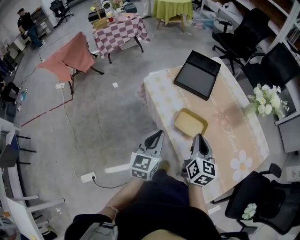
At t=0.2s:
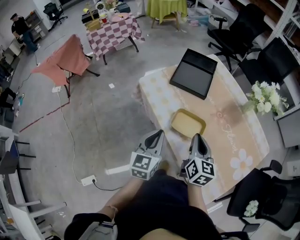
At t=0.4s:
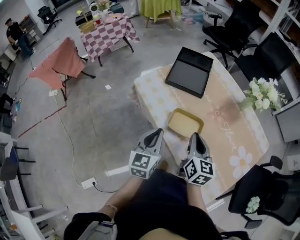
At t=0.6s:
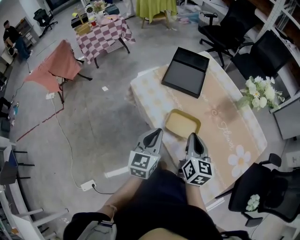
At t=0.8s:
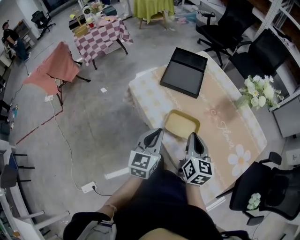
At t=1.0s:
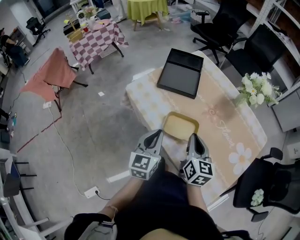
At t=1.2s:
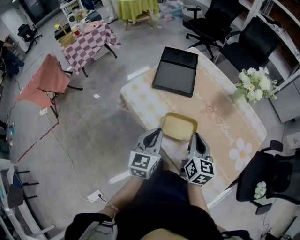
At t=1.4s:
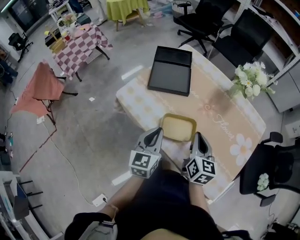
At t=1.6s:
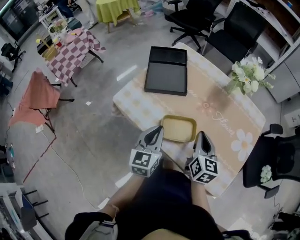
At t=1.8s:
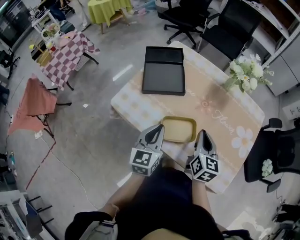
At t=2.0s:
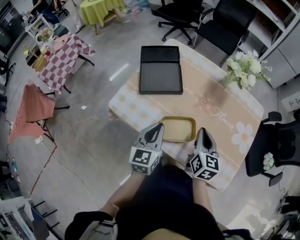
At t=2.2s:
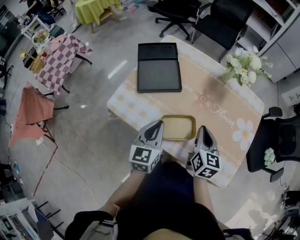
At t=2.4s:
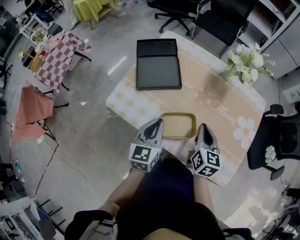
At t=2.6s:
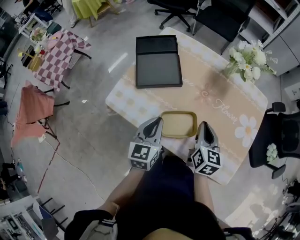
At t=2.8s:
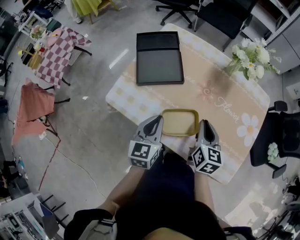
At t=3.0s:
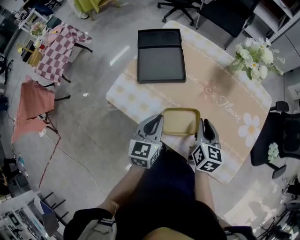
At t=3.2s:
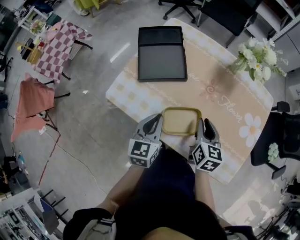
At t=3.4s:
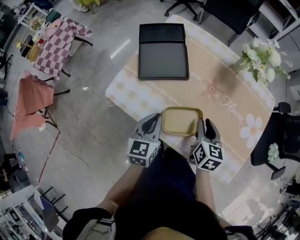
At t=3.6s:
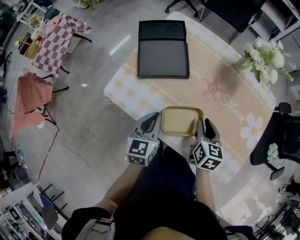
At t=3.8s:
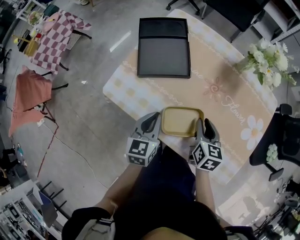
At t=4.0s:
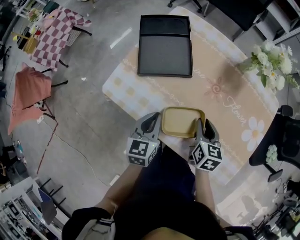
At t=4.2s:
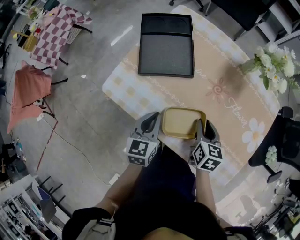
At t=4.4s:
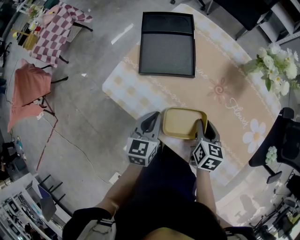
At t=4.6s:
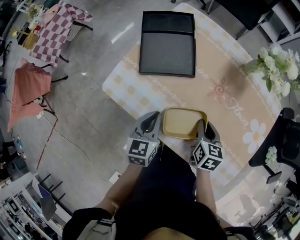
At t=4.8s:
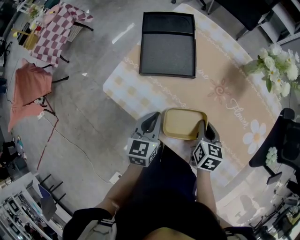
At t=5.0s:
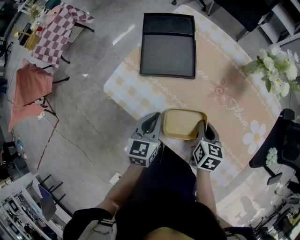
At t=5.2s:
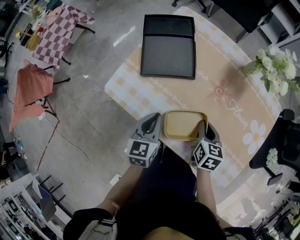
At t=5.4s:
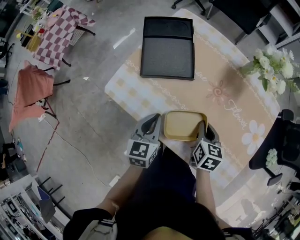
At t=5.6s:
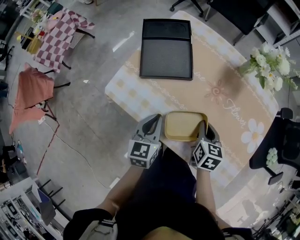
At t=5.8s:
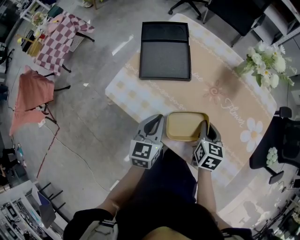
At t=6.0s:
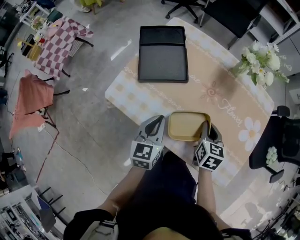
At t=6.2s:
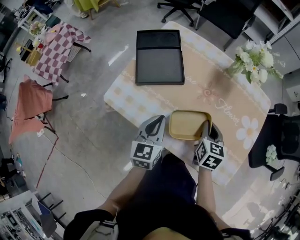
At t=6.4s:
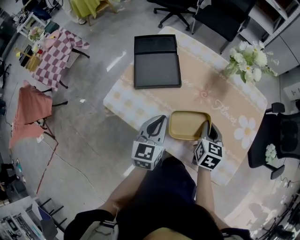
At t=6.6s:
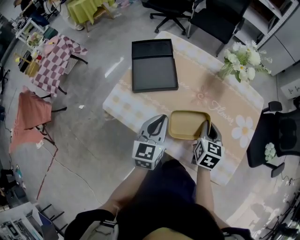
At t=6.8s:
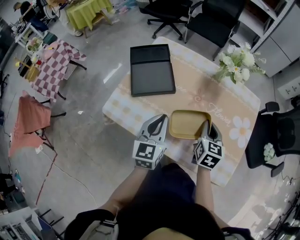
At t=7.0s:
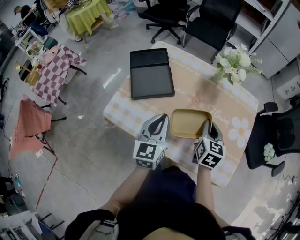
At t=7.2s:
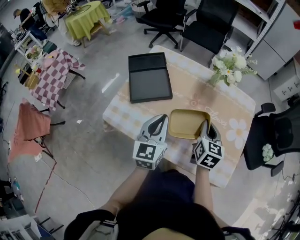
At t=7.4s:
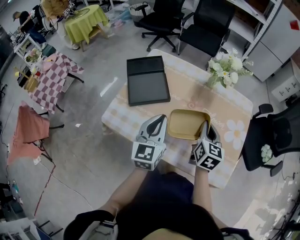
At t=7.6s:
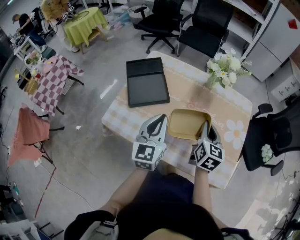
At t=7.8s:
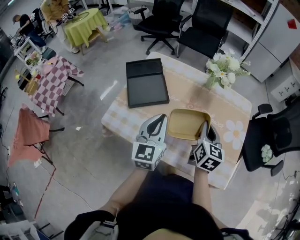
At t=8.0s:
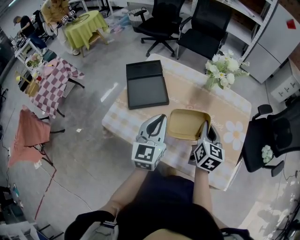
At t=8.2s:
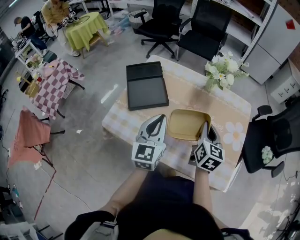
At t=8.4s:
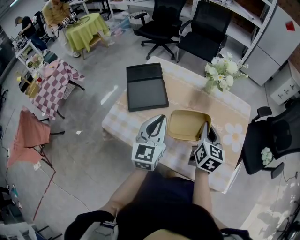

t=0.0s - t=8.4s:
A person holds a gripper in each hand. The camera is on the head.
t=0.0s - t=1.4s: The left gripper goes about 10 cm forward.
t=1.4s - t=2.8s: The left gripper heads forward, covering about 5 cm.
t=2.8s - t=4.2s: Both grippers travel together downward, roughly 5 cm.
t=4.2s - t=5.6s: The right gripper closes up.
t=5.6s - t=7.0s: The two grippers go roughly 10 cm upward and to the right. The right gripper changes its angle by roughly 20 degrees.
t=7.0s - t=8.4s: There are only small adjustments of the grippers.

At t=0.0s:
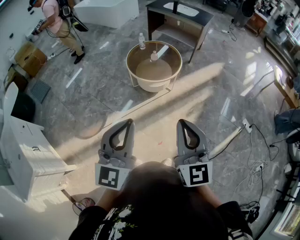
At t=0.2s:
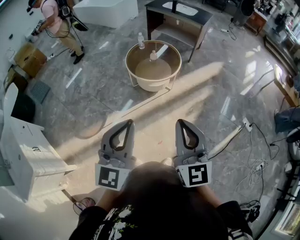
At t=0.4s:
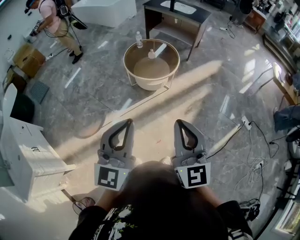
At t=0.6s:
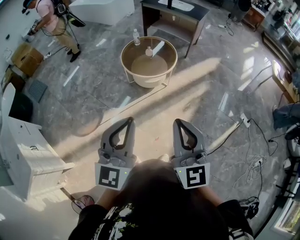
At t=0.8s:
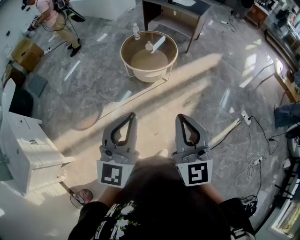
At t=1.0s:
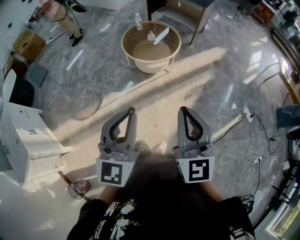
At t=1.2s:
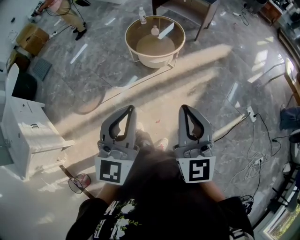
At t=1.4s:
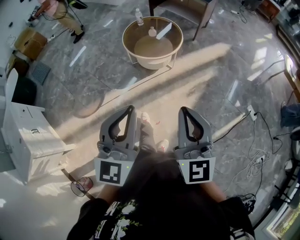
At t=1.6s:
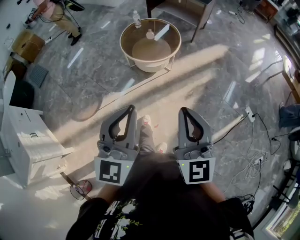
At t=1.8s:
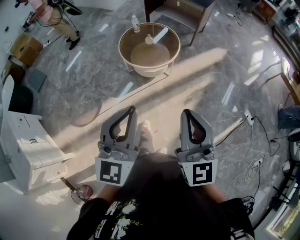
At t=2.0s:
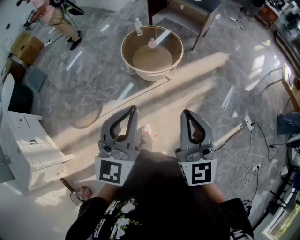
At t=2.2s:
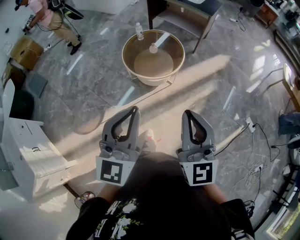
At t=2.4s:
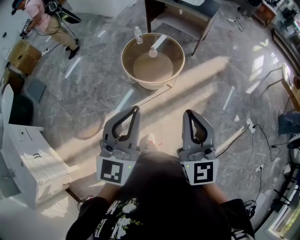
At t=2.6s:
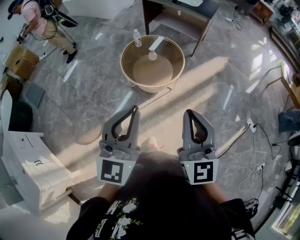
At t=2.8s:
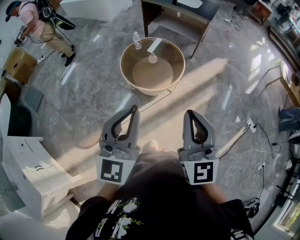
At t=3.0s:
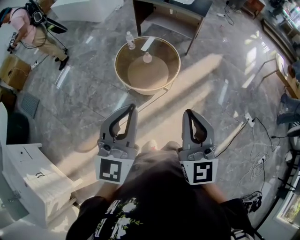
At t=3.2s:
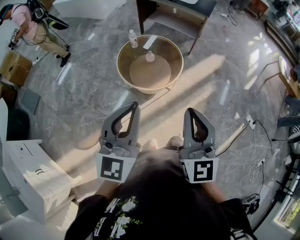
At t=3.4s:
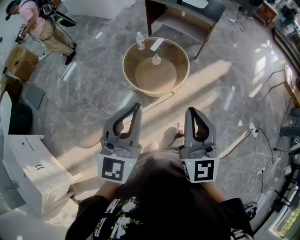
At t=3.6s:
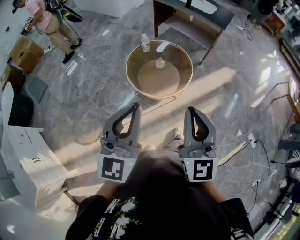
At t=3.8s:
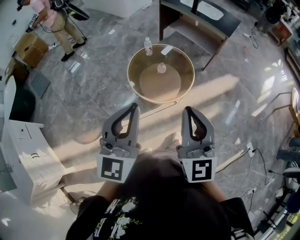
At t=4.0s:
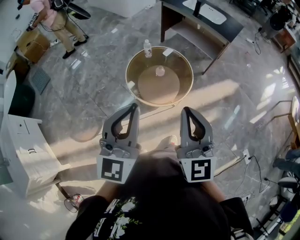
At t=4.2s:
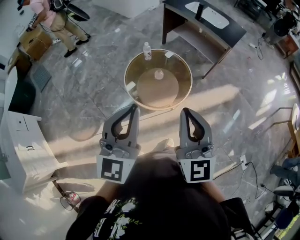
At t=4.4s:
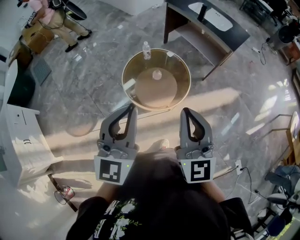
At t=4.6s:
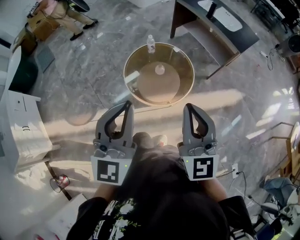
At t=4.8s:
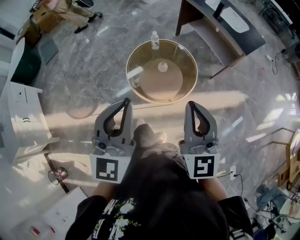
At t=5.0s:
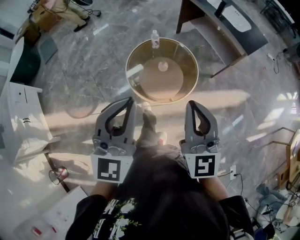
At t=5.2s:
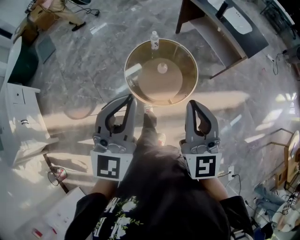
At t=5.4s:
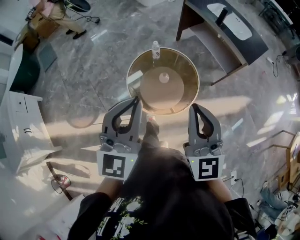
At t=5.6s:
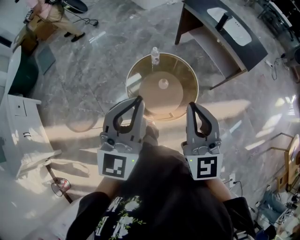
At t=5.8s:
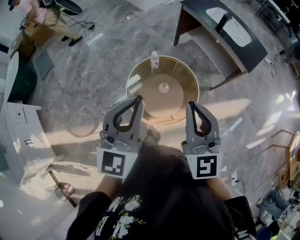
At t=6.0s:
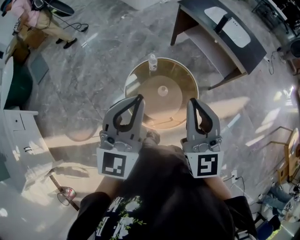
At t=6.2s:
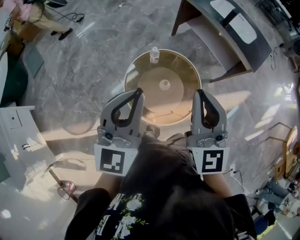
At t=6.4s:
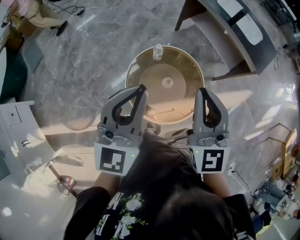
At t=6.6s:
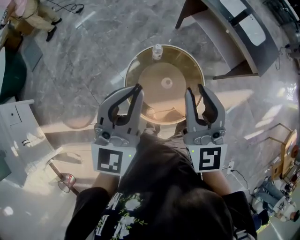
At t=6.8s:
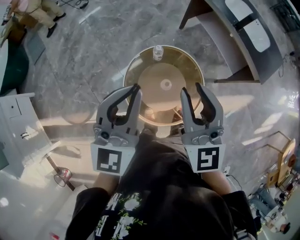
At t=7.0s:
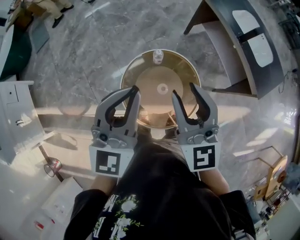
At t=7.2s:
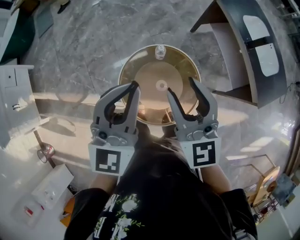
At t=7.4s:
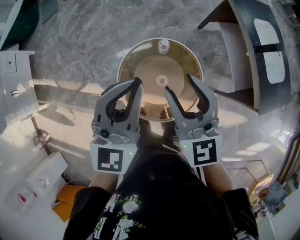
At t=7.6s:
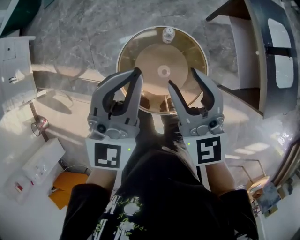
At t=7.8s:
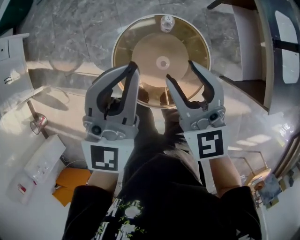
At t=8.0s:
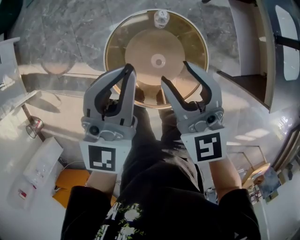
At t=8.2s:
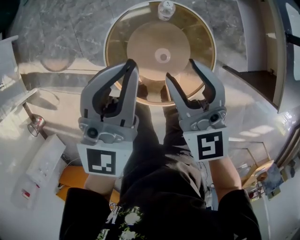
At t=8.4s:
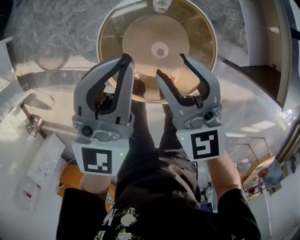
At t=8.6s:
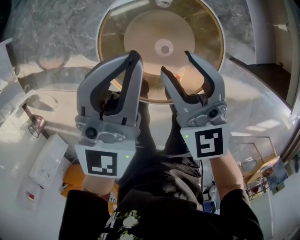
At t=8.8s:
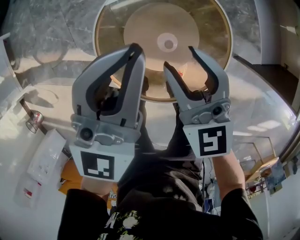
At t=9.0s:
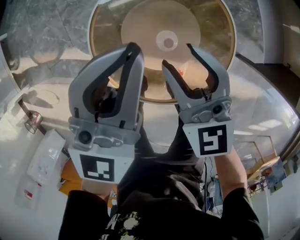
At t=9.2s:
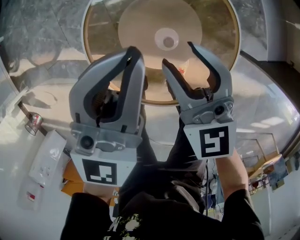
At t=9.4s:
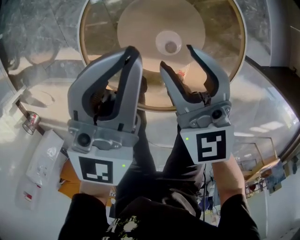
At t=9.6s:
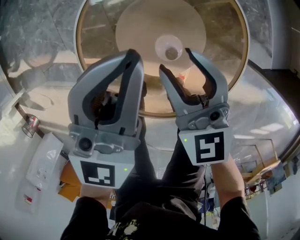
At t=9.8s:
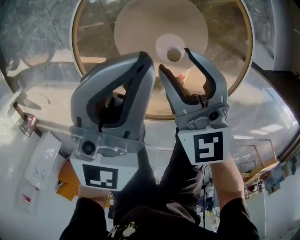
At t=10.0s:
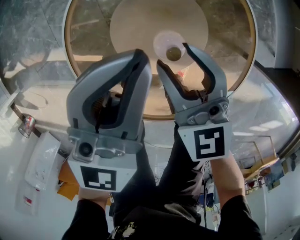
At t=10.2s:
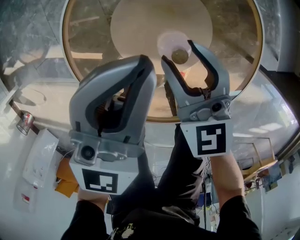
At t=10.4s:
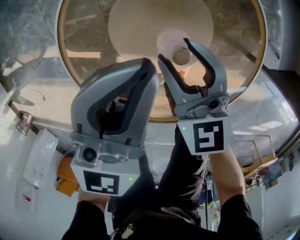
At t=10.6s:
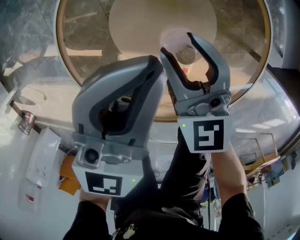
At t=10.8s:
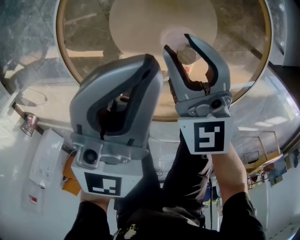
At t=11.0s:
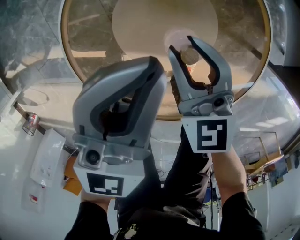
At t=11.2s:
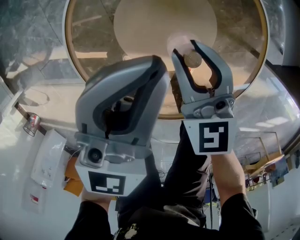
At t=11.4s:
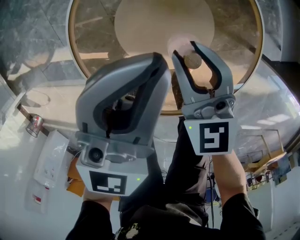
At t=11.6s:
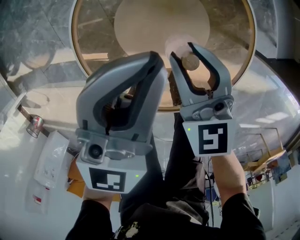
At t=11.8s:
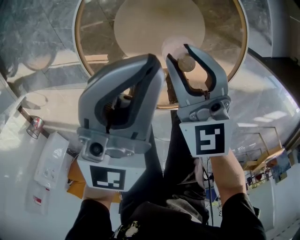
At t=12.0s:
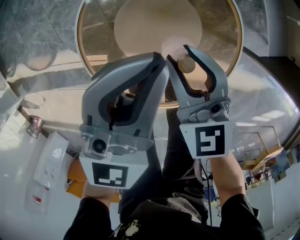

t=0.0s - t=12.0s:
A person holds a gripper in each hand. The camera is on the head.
t=0.0s - t=1.6s: Both grippers travel together to the right and forward, about 15 cm.
t=1.6s - t=3.0s: The two grippers go roughly 30 cm forward and to the left.
t=3.0s - t=4.4s: The grippers both shift forward and to the right by approximately 30 cm. The right gripper changes its angle by roughly 20 degrees, while the left gripper swivels roughly 20 degrees.
t=4.4s - t=6.0s: Both grippers move forward, some 30 cm.
t=6.0s - t=7.6s: The left gripper shifts by roughly 25 cm, and swivels approximately 30 degrees; the right gripper ends up approximately 30 cm from where it was, swivels roughly 40 degrees, and opens.
t=7.6s - t=9.0s: The grippers both shift downward by approximately 35 cm.
t=9.0s - t=10.4s: The grippers both shift downward by roughly 20 cm.
t=10.4s - t=12.0s: Both grippers move upward, approximately 15 cm.

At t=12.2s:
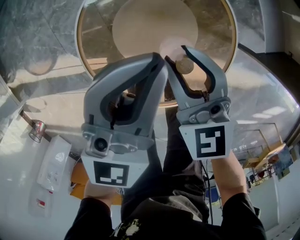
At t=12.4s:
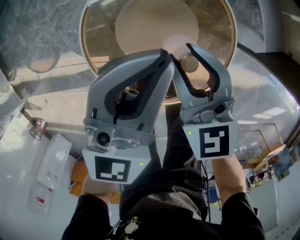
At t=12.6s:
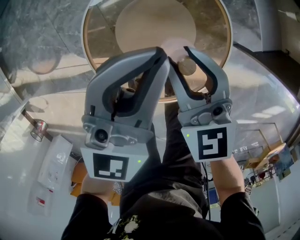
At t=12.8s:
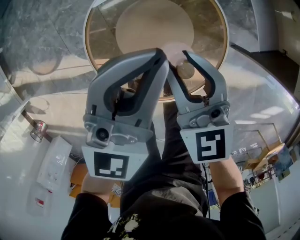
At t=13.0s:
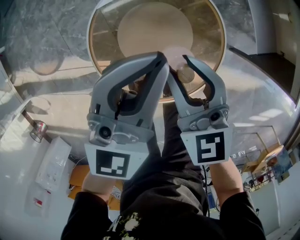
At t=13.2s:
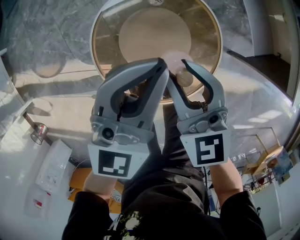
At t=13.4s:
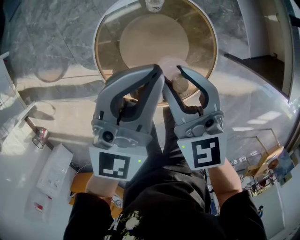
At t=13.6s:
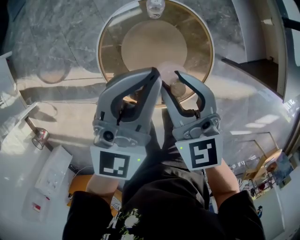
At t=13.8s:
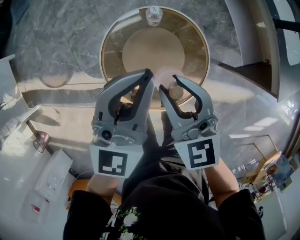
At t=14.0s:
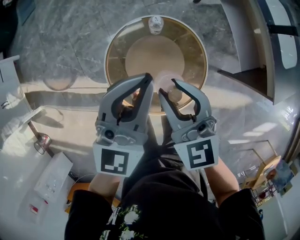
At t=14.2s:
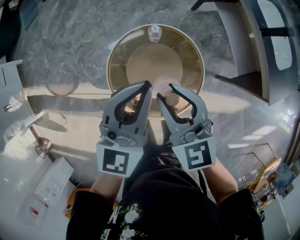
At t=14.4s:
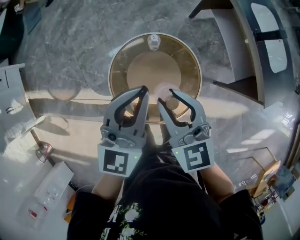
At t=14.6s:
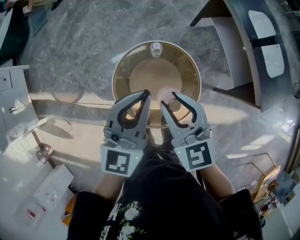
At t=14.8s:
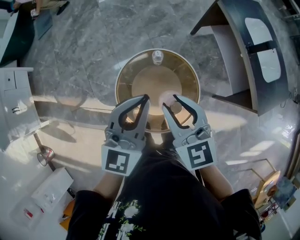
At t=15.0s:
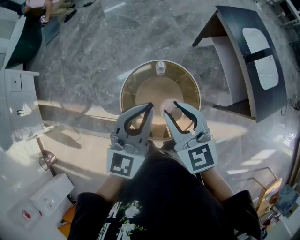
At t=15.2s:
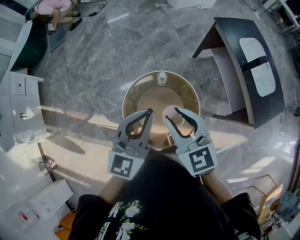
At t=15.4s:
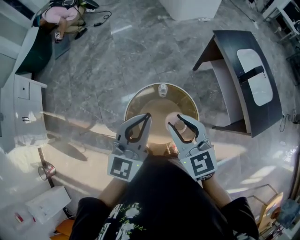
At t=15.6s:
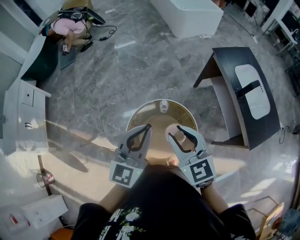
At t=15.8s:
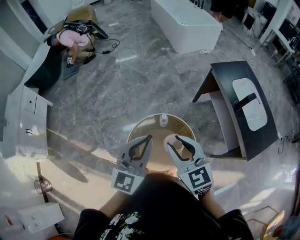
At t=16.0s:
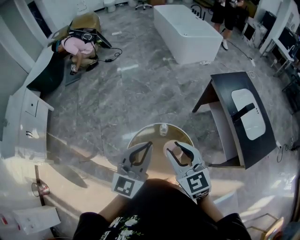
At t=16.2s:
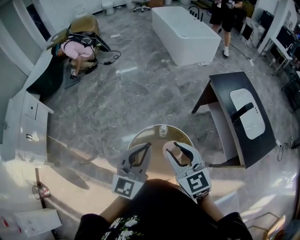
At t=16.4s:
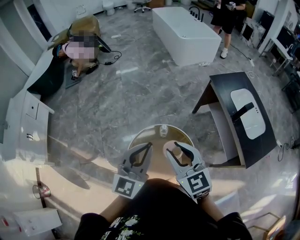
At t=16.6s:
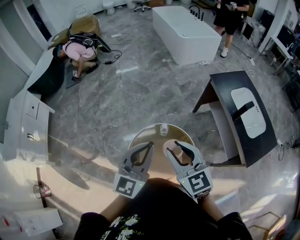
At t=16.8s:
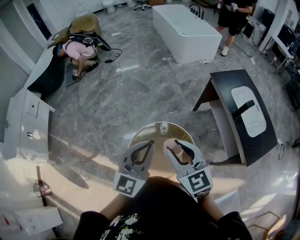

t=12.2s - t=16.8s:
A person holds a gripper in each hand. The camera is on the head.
t=12.2s - t=13.8s: Both grippers move upward, roughly 25 cm.
t=13.8s - t=15.2s: Both grippers move upward, about 20 cm.
t=15.2s - t=16.8s: Both grippers move upward, approximately 10 cm.
